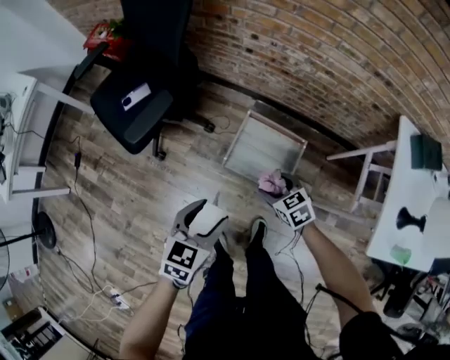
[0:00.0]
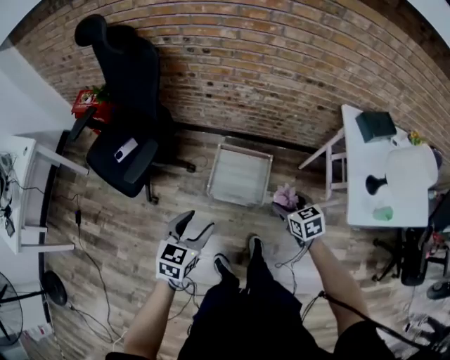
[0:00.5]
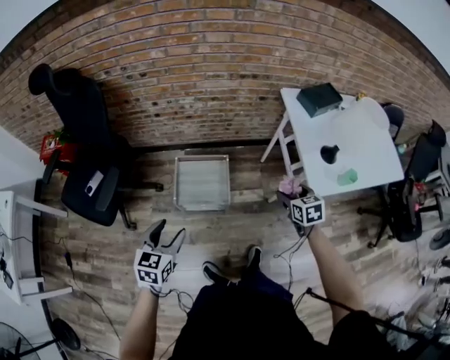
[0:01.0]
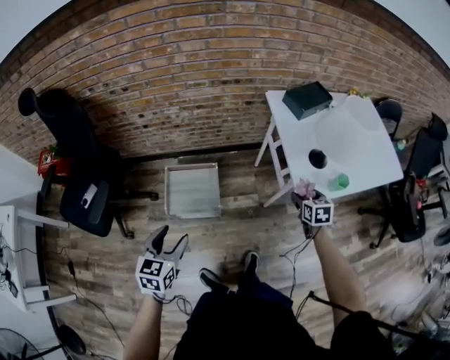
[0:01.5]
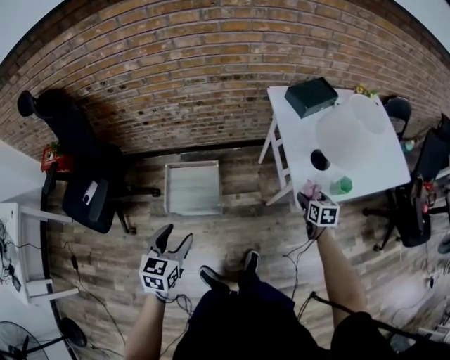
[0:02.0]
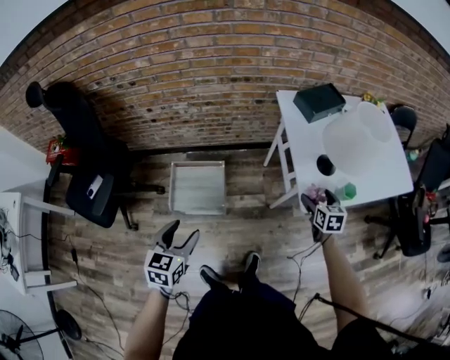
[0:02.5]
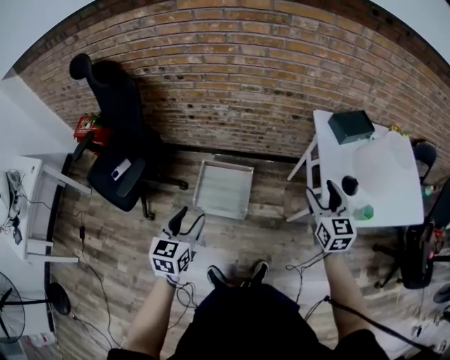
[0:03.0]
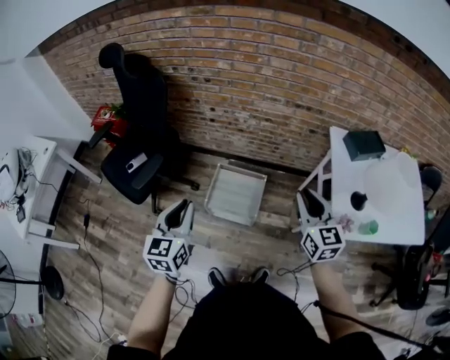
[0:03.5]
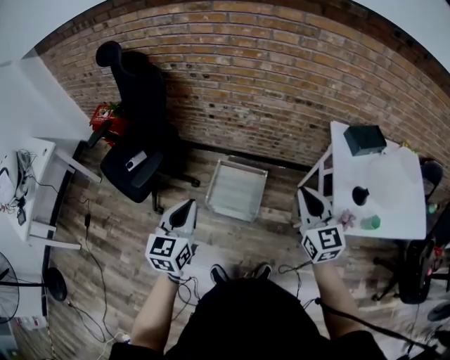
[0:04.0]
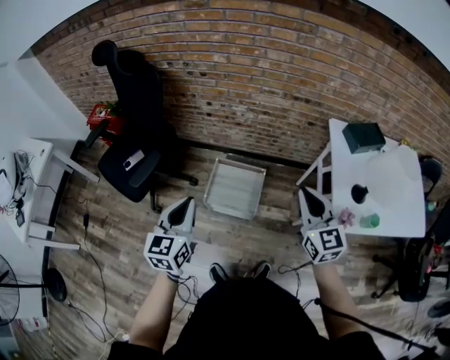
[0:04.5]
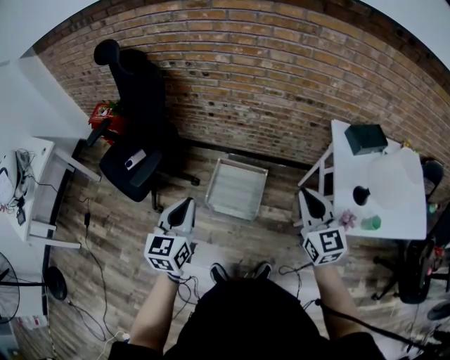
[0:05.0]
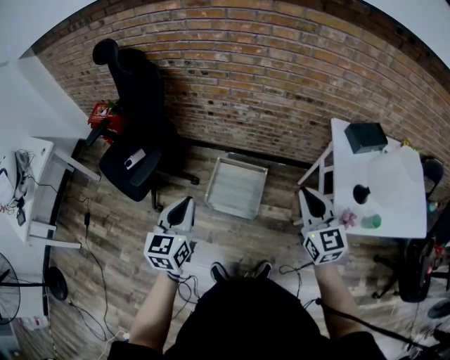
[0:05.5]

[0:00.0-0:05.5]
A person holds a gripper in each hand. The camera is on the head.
0:00.0 to 0:02.0: The right gripper moves roughly 60 cm, and changes its angle by approximately 60 degrees. The left gripper shifts by about 25 cm.
0:02.0 to 0:03.5: The left gripper is displaced to the left and upward by some 20 cm, changes its angle by about 30 degrees, and closes its fingers. Meanwhile the right gripper heads to the left and upward, covering some 40 cm, tilts its fingers about 30 degrees upward, and closes up.
0:03.5 to 0:05.5: The grippers make only small movements.

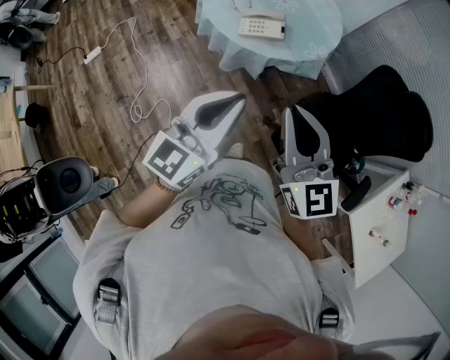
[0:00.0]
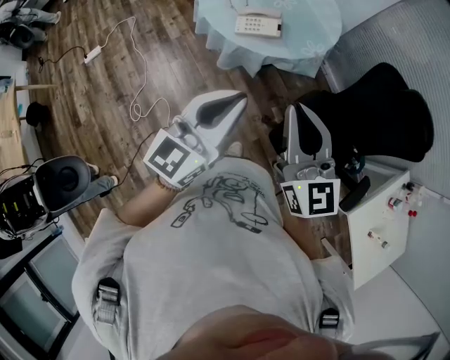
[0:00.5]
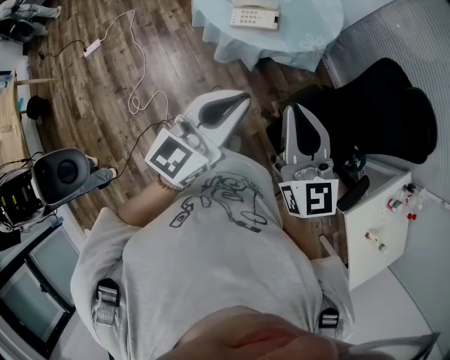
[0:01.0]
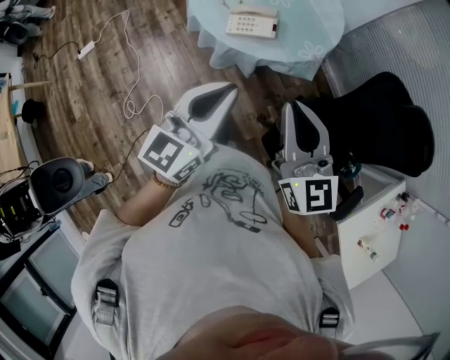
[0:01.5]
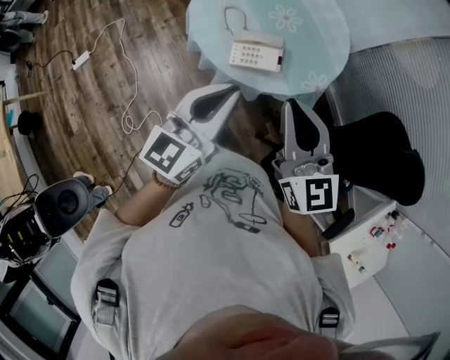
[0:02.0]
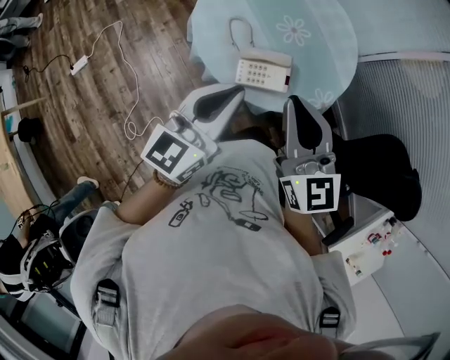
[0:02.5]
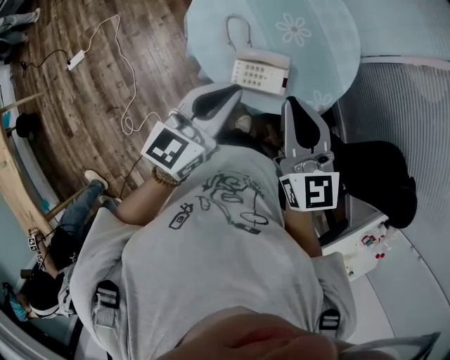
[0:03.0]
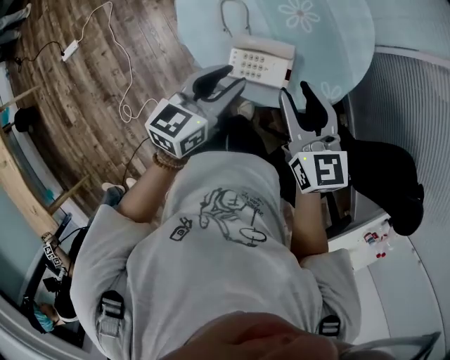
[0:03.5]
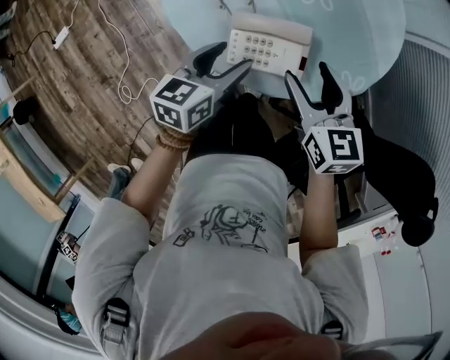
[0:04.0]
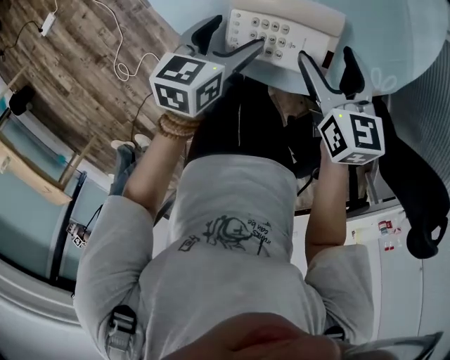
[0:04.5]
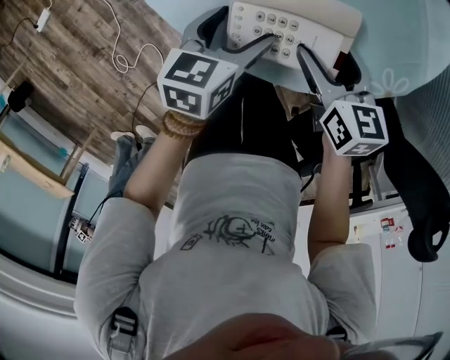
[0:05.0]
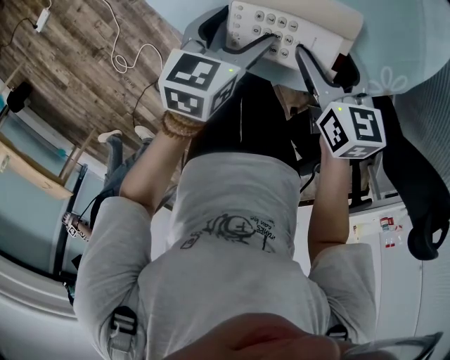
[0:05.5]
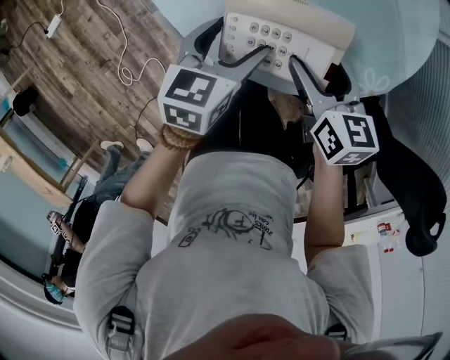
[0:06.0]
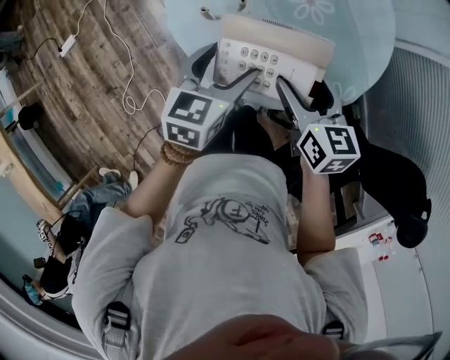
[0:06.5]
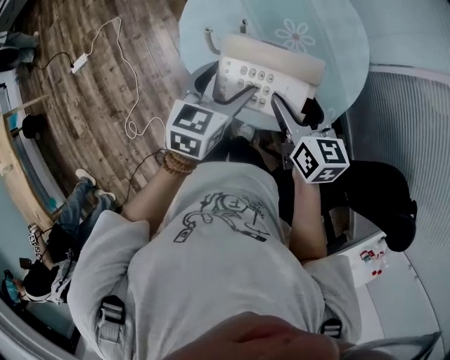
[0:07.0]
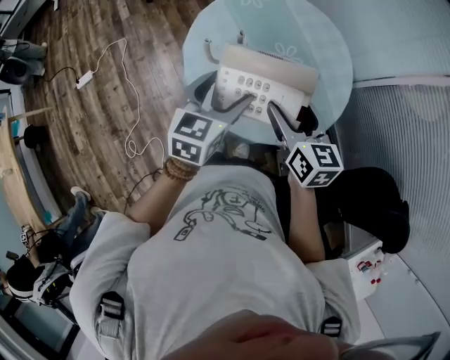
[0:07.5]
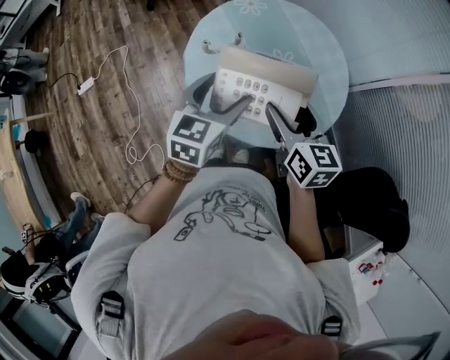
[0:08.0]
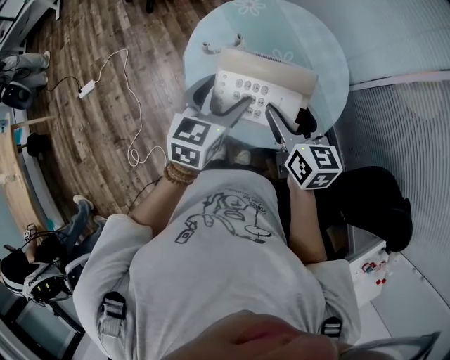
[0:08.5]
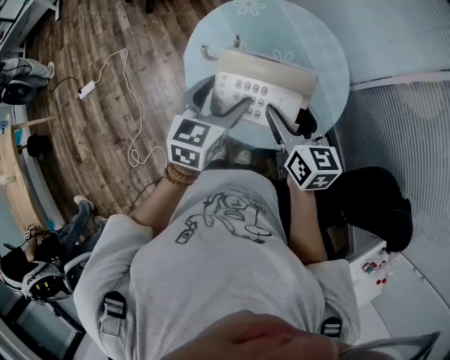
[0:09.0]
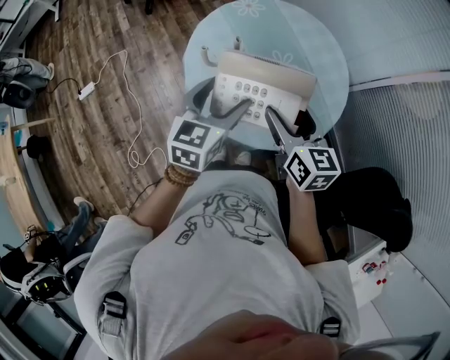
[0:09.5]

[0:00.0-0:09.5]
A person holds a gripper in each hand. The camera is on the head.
0:00.0 to 0:02.0: The two grippers go roughly 25 cm forward.
0:02.0 to 0:04.0: The grippers both shift downward and forward by some 40 cm. The right gripper changes its angle by approximately 30 degrees, and opens its fingers; the left gripper turns by approximately 40 degrees, and opens up.
0:04.0 to 0:05.5: Both grippers move downward, about 15 cm.
0:05.5 to 0:07.5: Both grippers travel together upward, approximately 40 cm. The right gripper rotates approximately 20 degrees. The left gripper changes its angle by about 30 degrees.
0:07.5 to 0:09.5: The grippers make only small movements.

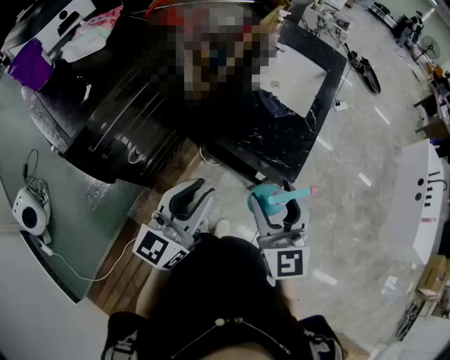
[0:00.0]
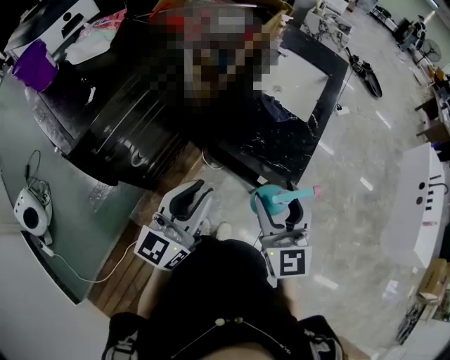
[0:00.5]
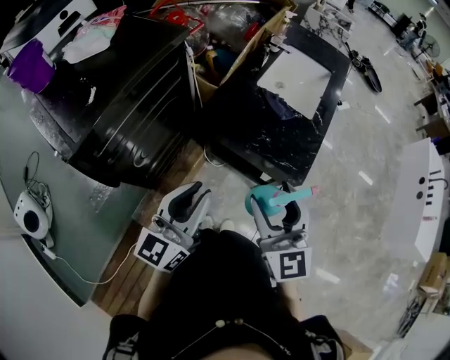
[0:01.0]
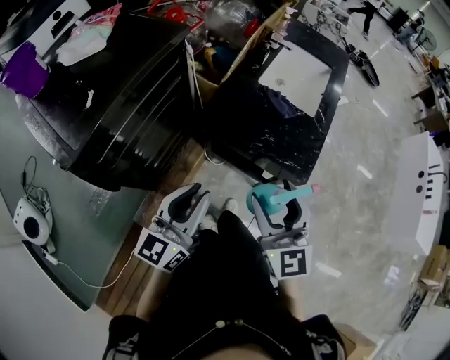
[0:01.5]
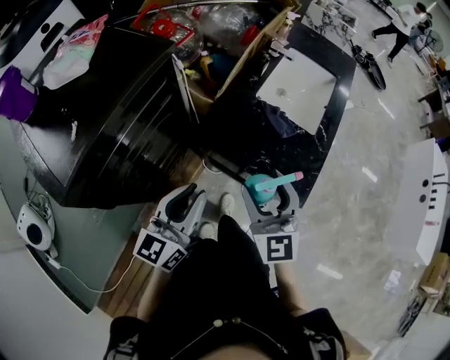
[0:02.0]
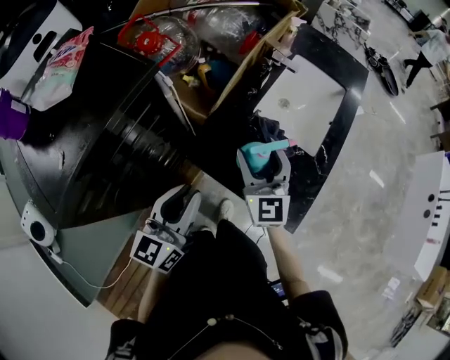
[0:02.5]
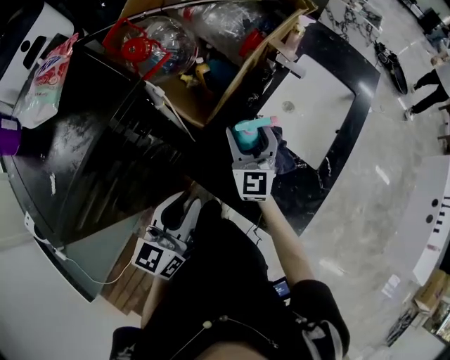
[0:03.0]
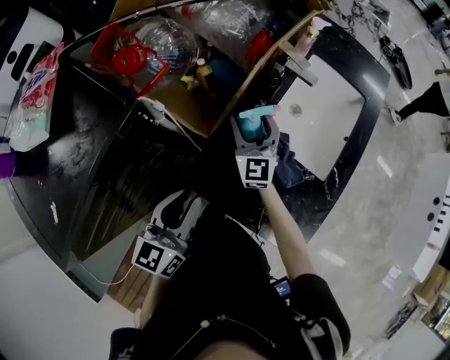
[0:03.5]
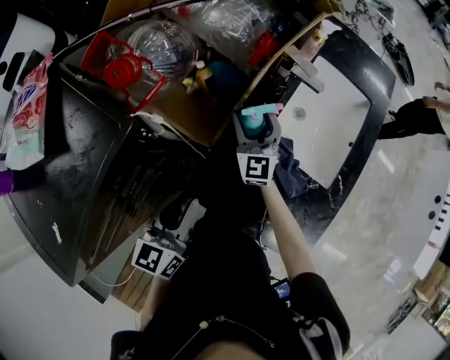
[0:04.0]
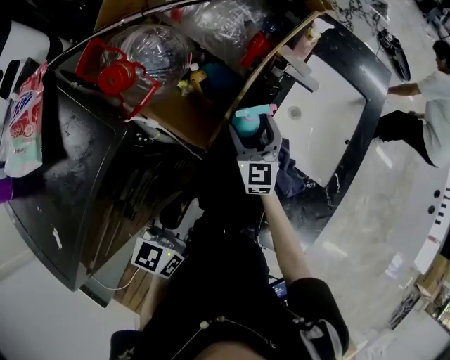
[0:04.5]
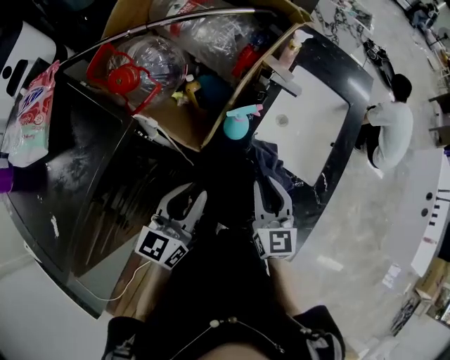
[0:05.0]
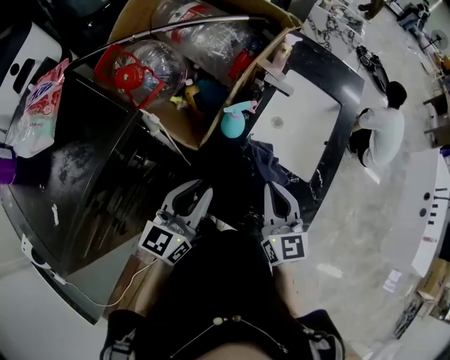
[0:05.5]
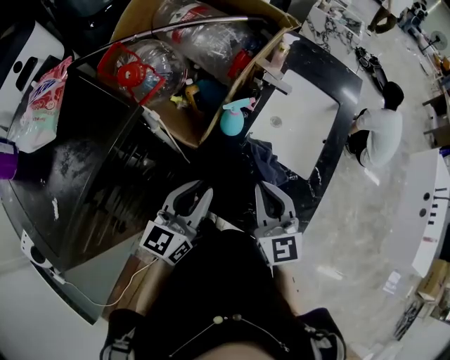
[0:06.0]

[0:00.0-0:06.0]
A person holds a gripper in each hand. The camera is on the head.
0:00.0 to 0:02.0: The left gripper travels forward, to the left and downward by roughly 15 cm, while the right gripper goes approximately 15 cm forward and to the left.
0:02.0 to 0:04.0: The right gripper travels forward by approximately 40 cm; the left gripper moves forward, roughly 25 cm.
0:04.0 to 0:06.0: The left gripper travels to the right by about 5 cm, while the right gripper heads backward, upward and to the right, covering approximately 30 cm, and closes up.

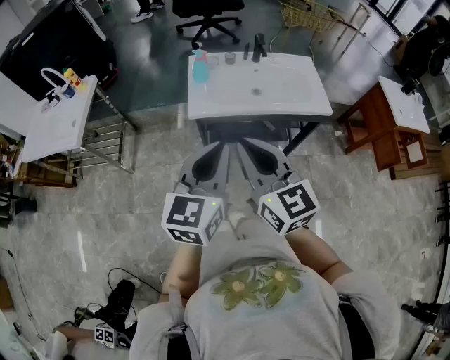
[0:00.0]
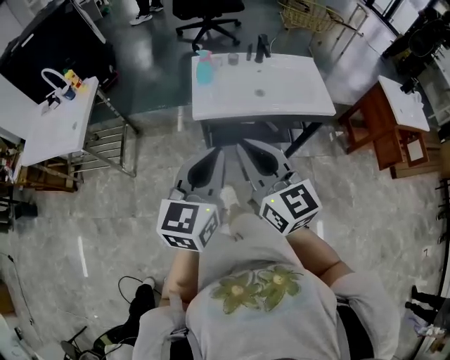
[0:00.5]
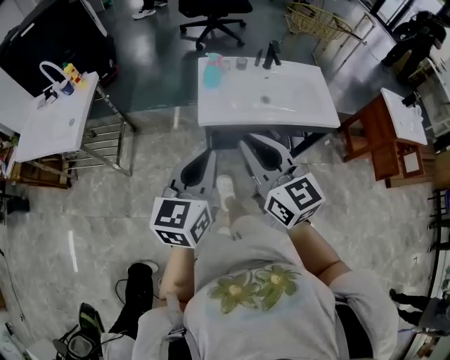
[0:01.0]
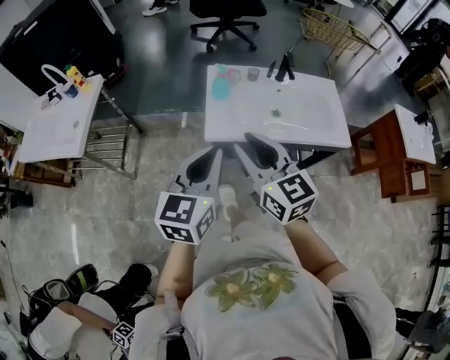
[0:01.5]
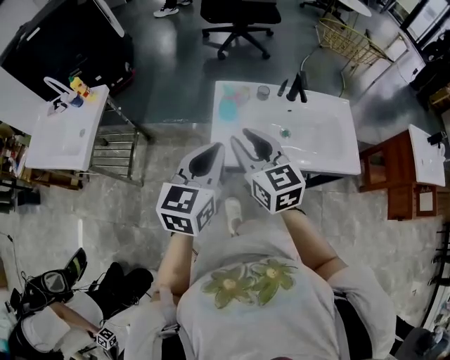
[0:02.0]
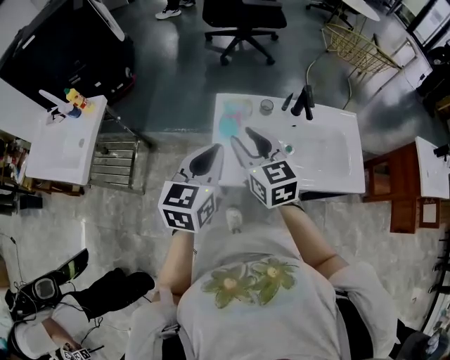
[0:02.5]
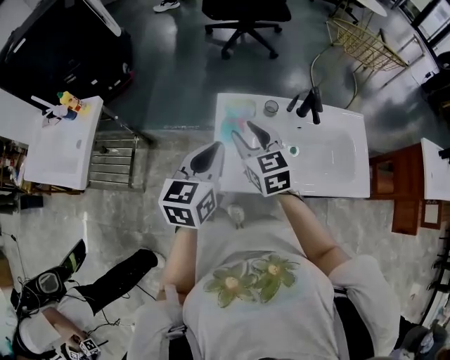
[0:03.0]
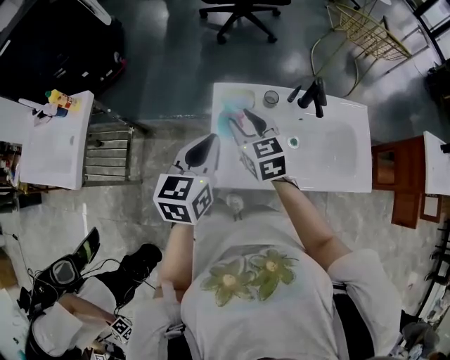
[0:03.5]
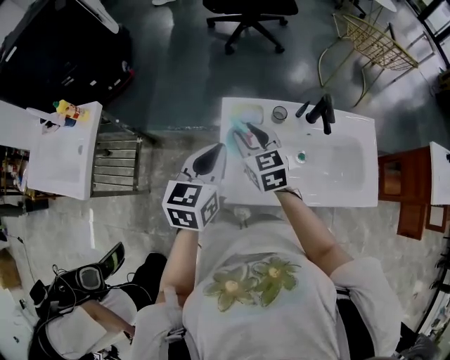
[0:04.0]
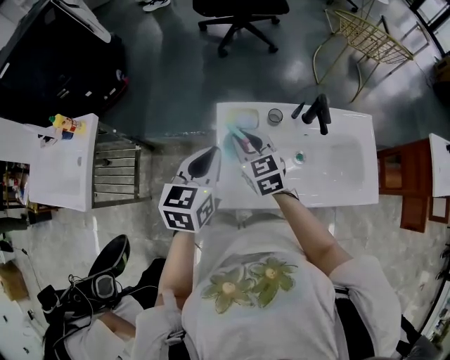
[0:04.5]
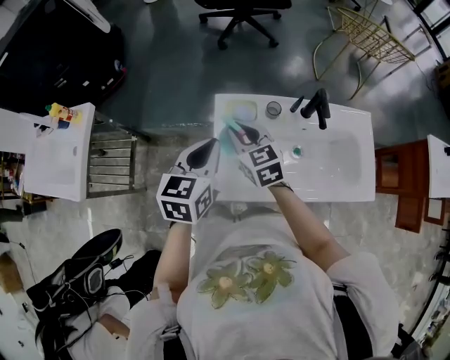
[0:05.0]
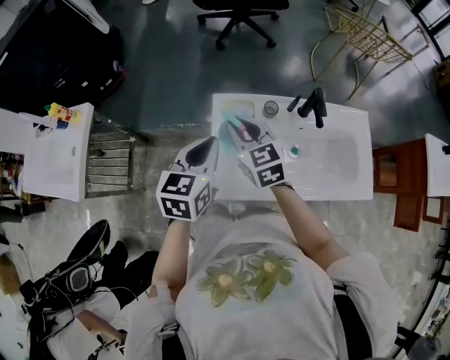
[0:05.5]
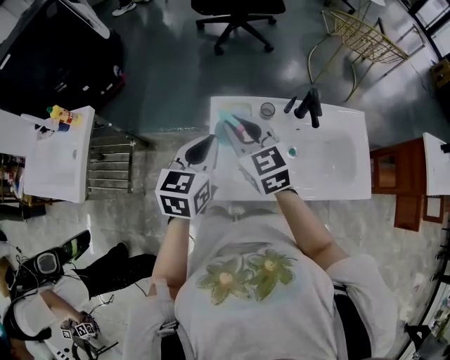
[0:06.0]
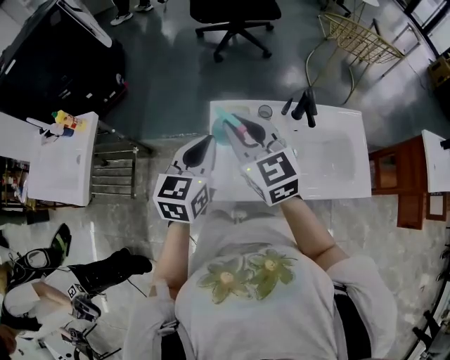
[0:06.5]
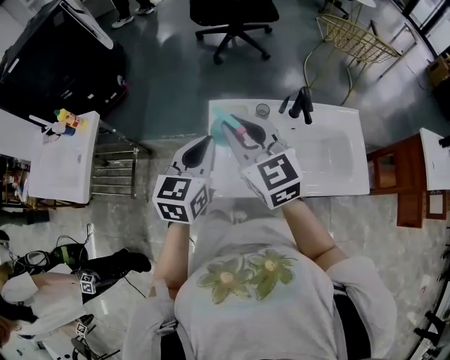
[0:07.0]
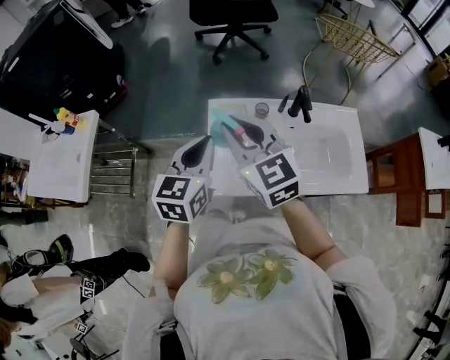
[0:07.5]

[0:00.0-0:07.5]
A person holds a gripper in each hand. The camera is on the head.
0:00.0 to 0:02.0: Both grippers travel together forward, about 25 cm.
0:02.0 to 0:04.0: The grippers both shift forward and downward by approximately 20 cm.
0:04.0 to 0:05.5: The grippers stay close to where they were, moving slightly.
0:05.5 to 0:07.5: The left gripper is displaced upward by about 5 cm; the right gripper heads upward and backward, covering about 15 cm.
